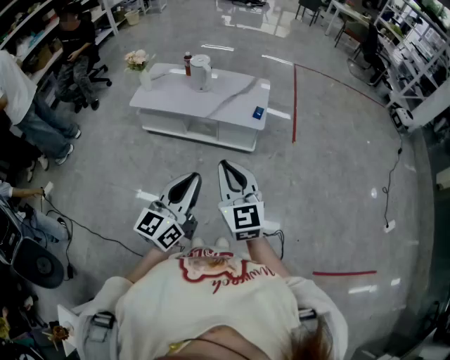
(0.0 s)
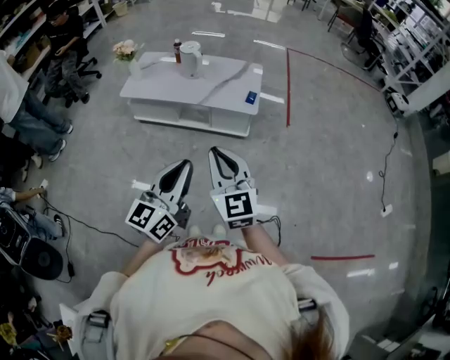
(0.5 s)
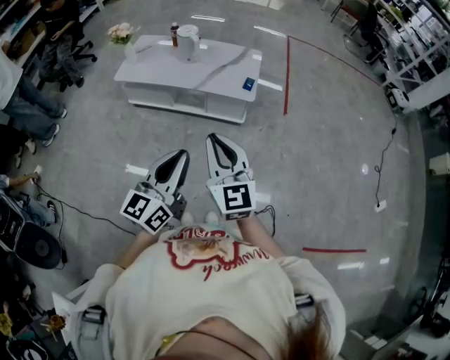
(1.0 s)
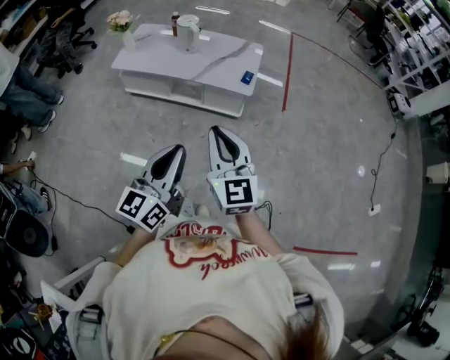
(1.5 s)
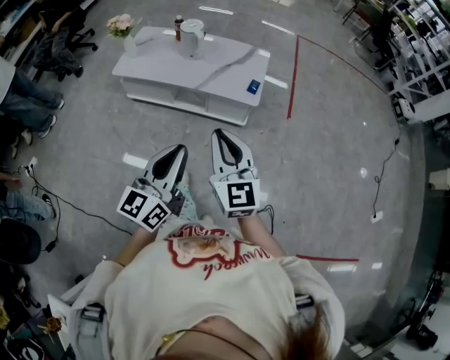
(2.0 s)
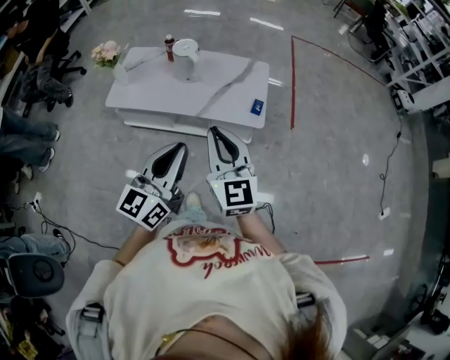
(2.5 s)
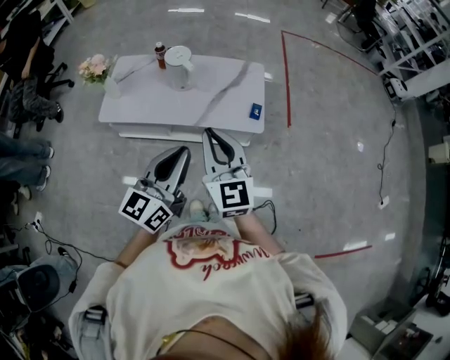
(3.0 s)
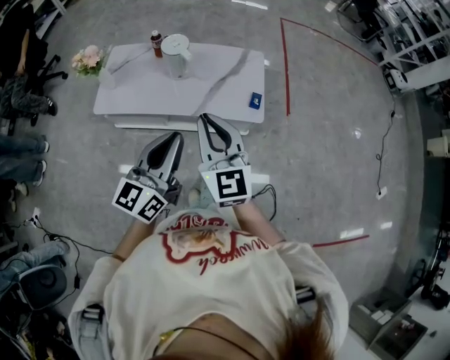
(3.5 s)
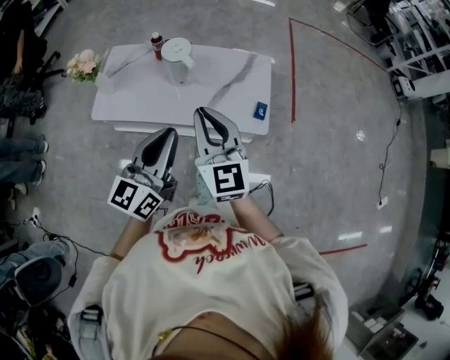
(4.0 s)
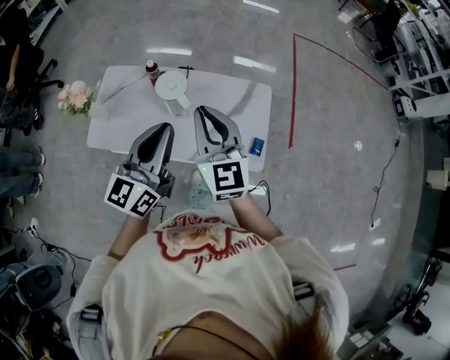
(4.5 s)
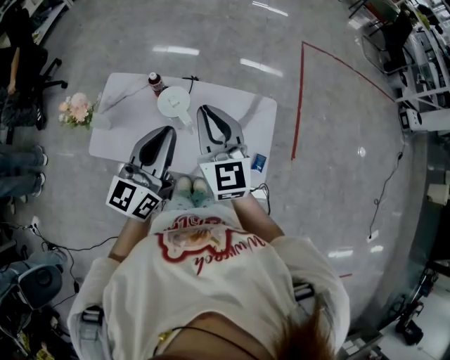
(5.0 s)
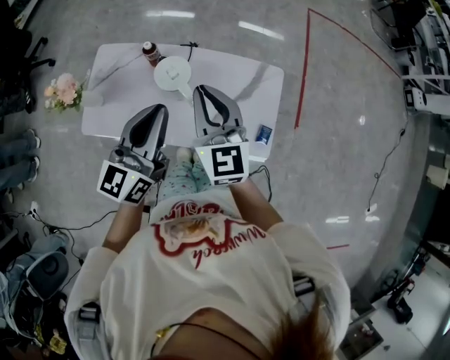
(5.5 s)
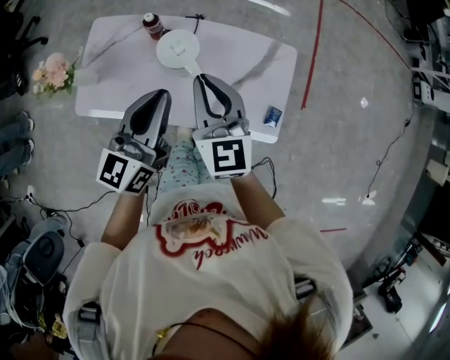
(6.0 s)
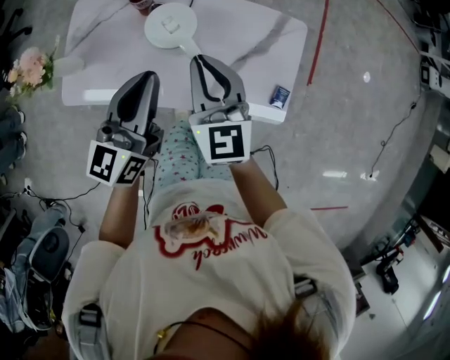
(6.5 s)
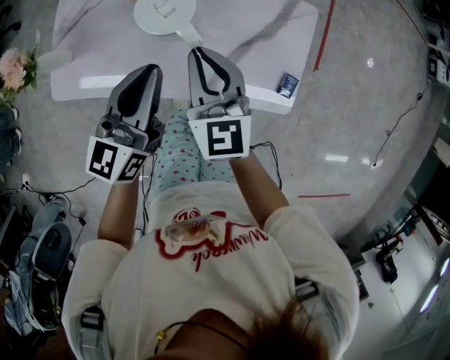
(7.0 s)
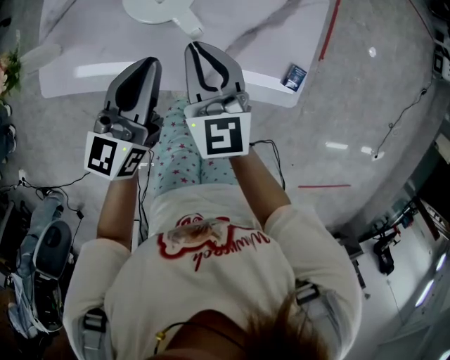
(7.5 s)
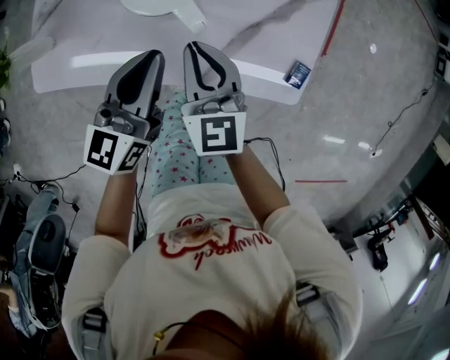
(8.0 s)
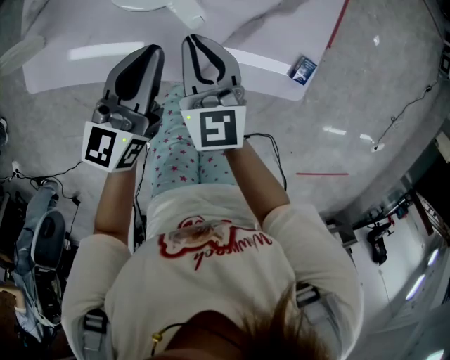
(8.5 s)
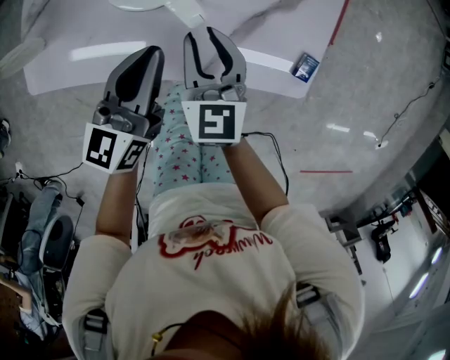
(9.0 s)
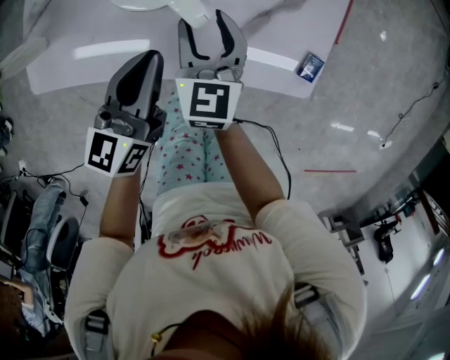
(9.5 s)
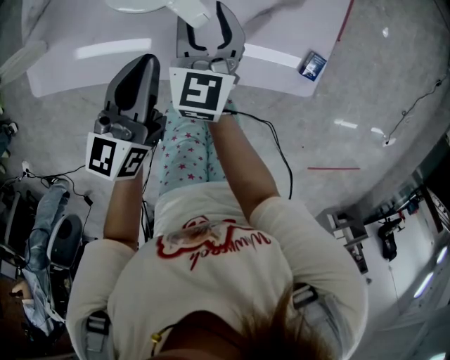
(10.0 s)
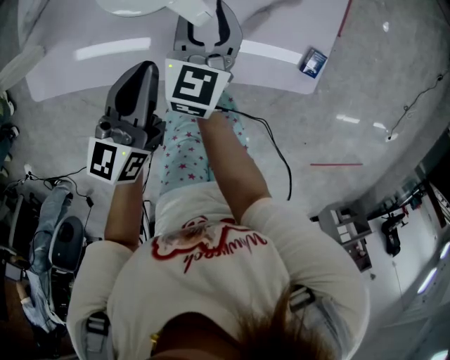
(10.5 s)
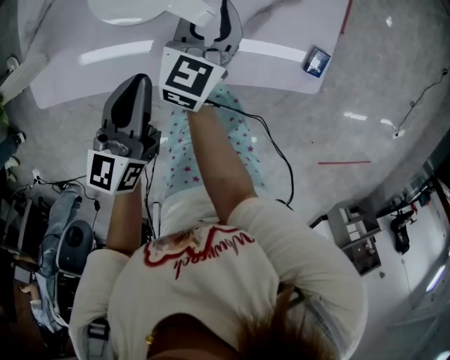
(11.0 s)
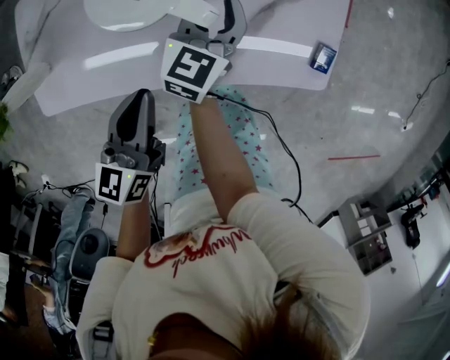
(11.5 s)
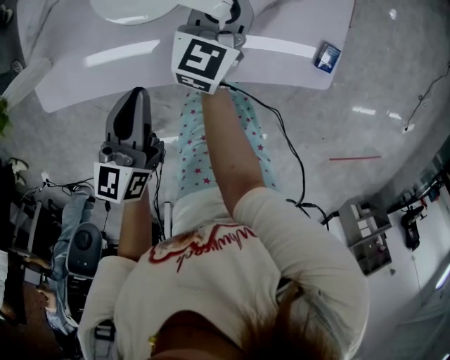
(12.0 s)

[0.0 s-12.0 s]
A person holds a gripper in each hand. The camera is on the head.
0.0 to 2.0 s: The two grippers go some 10 cm forward.
2.0 to 4.0 s: The grippers both shift forward and to the left by about 40 cm.
4.0 to 6.0 s: Both grippers move forward, some 30 cm.
6.0 to 8.0 s: The grippers both shift downward by roughly 20 cm.
8.0 to 10.0 s: The right gripper is displaced downward and forward by approximately 10 cm, and opens its fingers.
10.0 to 12.0 s: The left gripper ends up some 5 cm from where it was. Meanwhile the right gripper travels forward by approximately 5 cm, and closes.

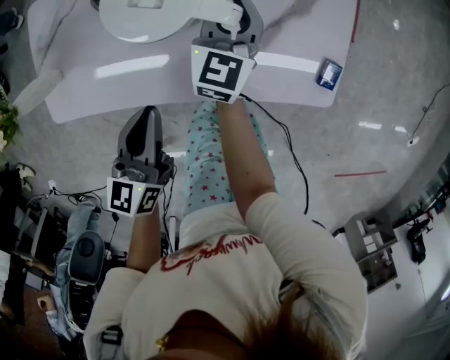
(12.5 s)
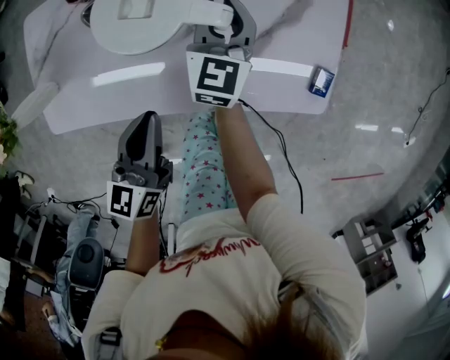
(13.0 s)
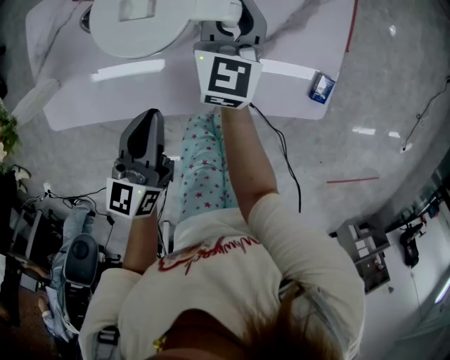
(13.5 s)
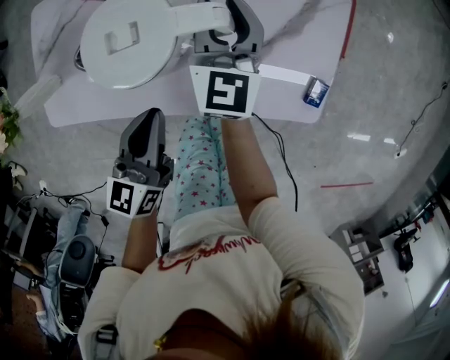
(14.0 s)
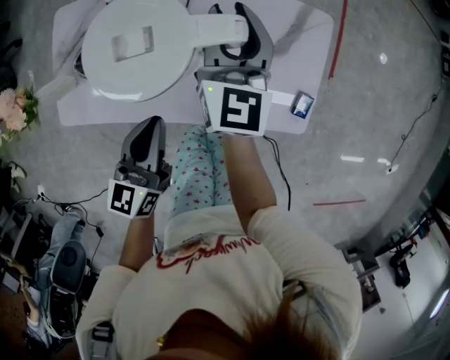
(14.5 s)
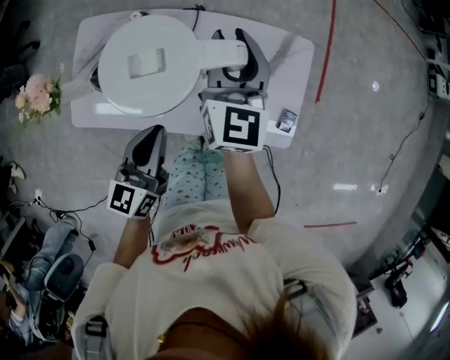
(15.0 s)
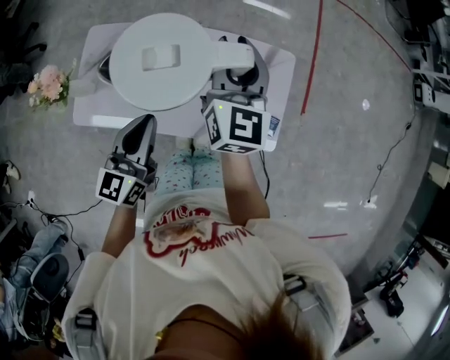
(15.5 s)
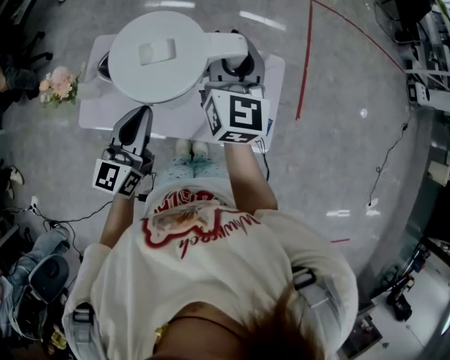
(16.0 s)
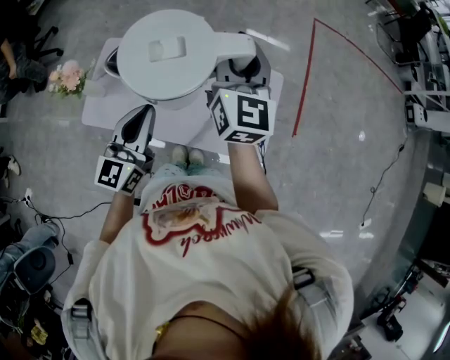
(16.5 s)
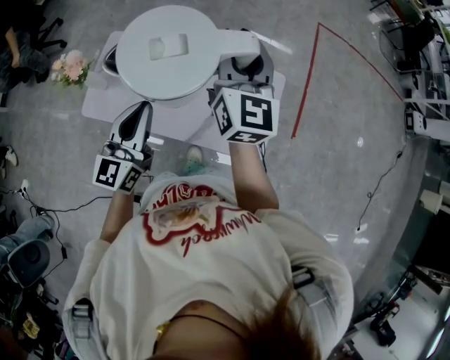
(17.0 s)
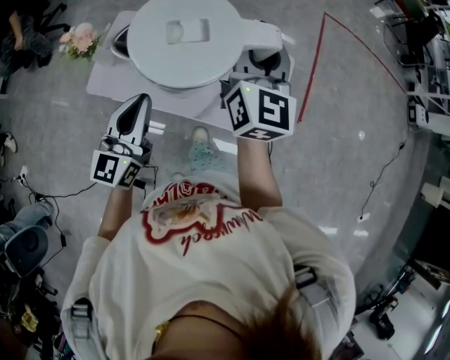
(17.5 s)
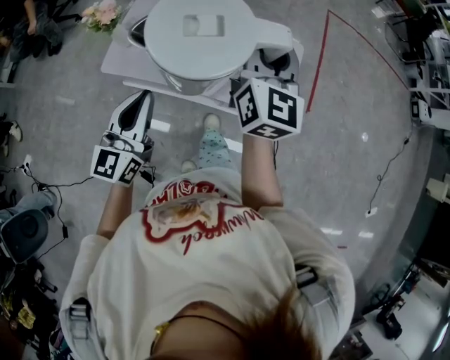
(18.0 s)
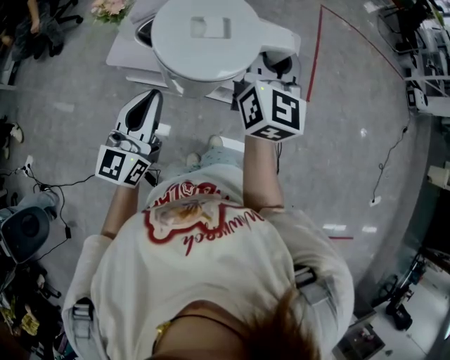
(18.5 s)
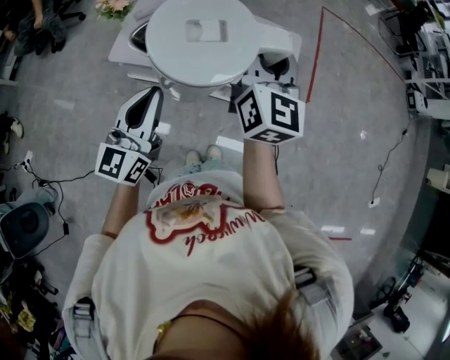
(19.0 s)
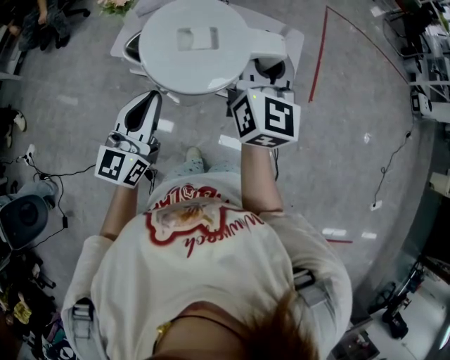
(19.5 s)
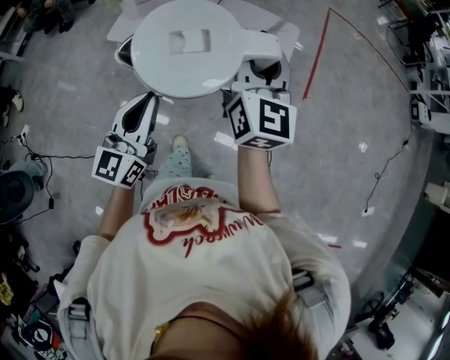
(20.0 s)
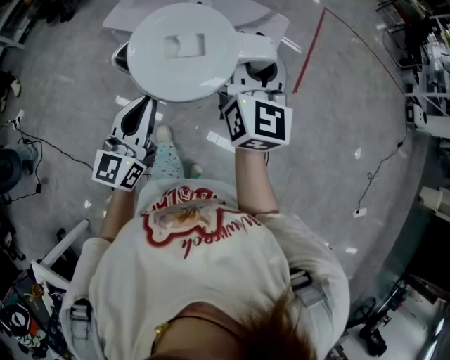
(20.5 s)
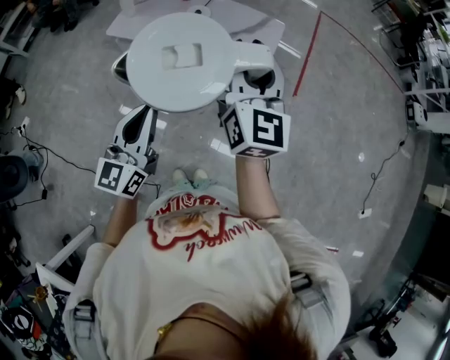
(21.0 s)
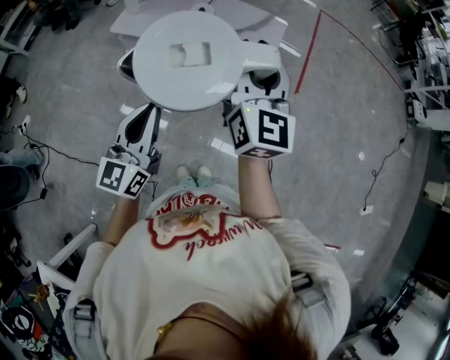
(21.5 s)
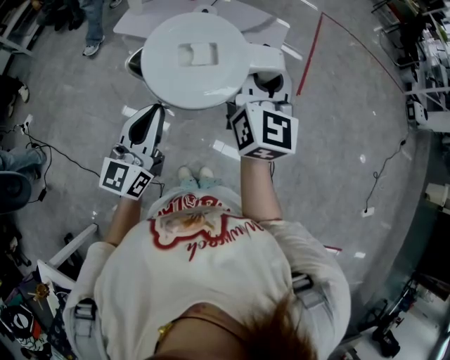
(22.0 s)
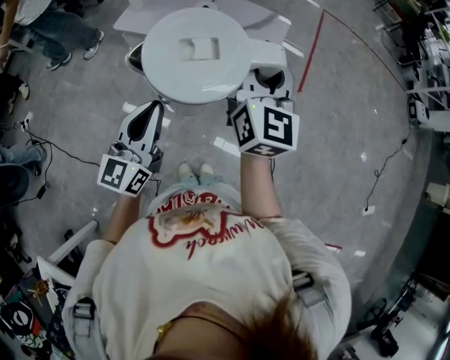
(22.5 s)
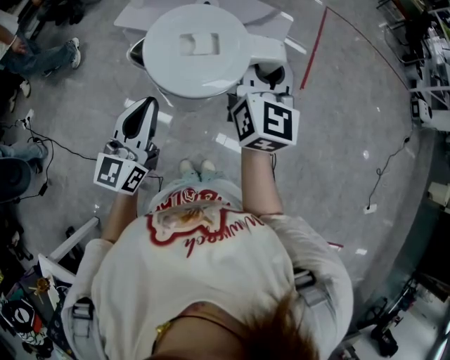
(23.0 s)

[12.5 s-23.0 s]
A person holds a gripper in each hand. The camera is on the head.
12.5 to 14.5 s: The right gripper goes approximately 20 cm upward. The left gripper is displaced upward by about 10 cm.
14.5 to 16.5 s: The two grippers go approximately 25 cm upward. The left gripper changes its angle by roughly 20 degrees.
16.5 to 19.0 s: Both grippers travel together backward, approximately 35 cm.
19.0 to 21.0 s: The grippers both shift backward and to the right by some 30 cm.
21.0 to 23.0 s: The grippers stay close to where they were, moving slightly.

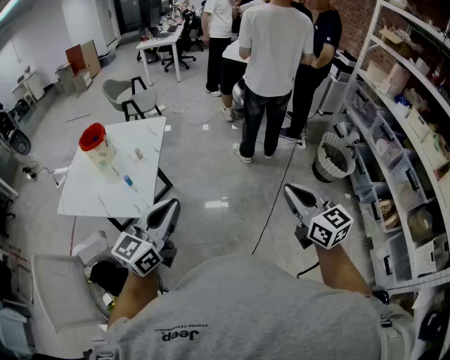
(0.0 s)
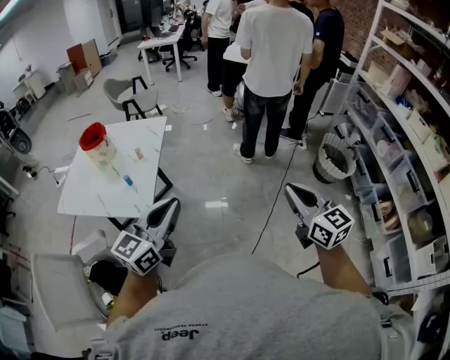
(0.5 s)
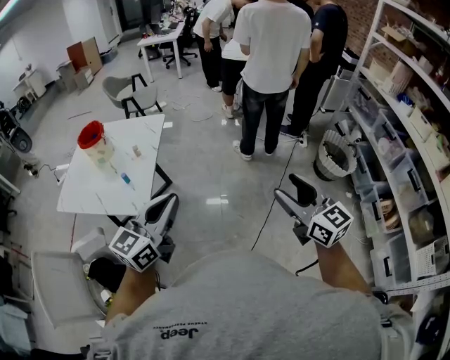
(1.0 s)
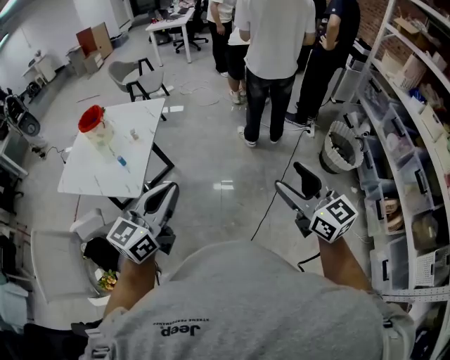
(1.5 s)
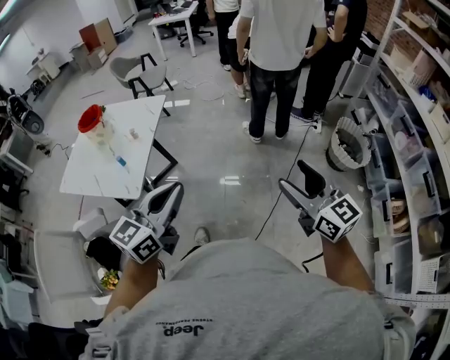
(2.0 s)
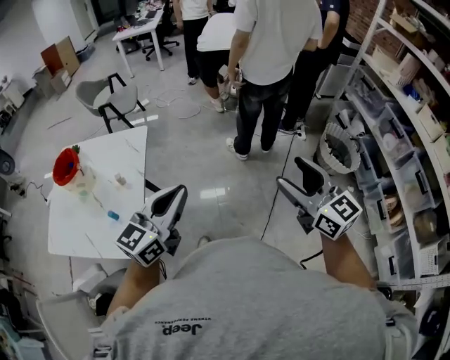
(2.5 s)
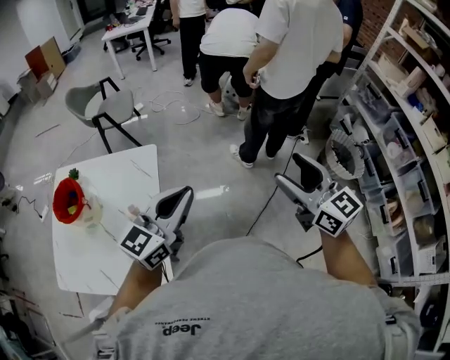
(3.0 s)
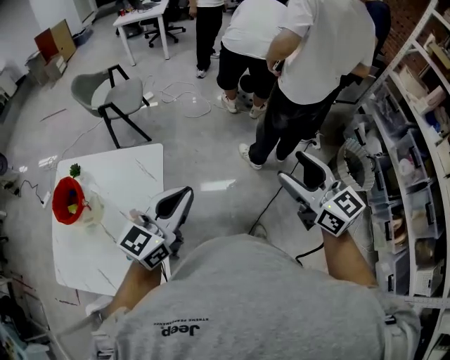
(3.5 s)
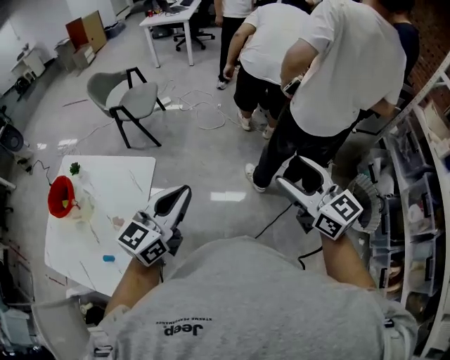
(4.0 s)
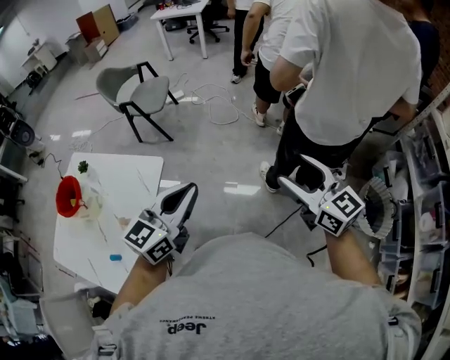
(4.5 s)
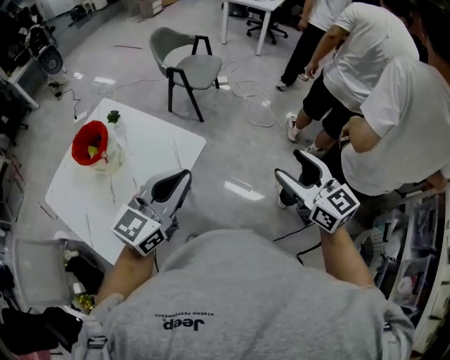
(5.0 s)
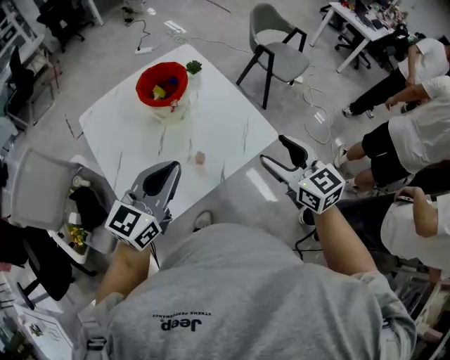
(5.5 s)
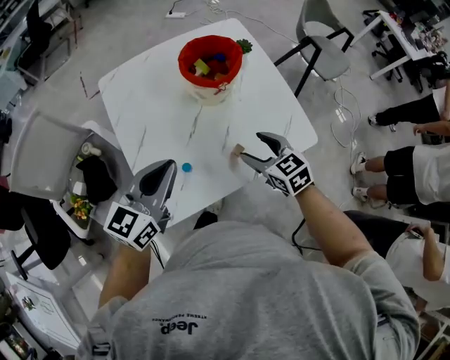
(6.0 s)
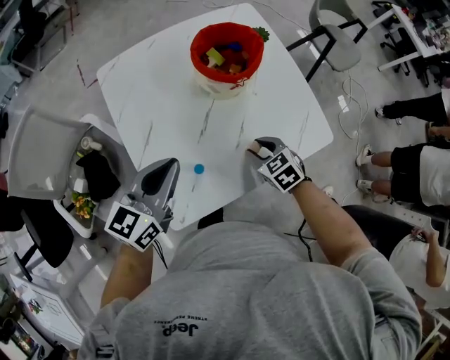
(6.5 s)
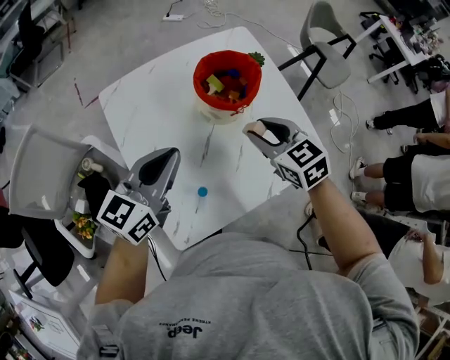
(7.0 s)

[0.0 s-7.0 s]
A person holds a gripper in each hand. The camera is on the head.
0.0 to 2.0 s: Both grippers travel together to the right, roughly 10 cm. The right gripper opens its fingers.
2.0 to 3.5 s: The two grippers travel together, forward and to the left, roughly 50 cm.
3.5 to 5.0 s: The right gripper shifts by roughly 20 cm, and turns by roughly 30 degrees. The left gripper swivels some 30 degrees.
5.0 to 7.0 s: The pair of grippers is taken approximately 50 cm. The left gripper changes its angle by roughly 40 degrees, while the right gripper changes its angle by about 50 degrees, and closes.
